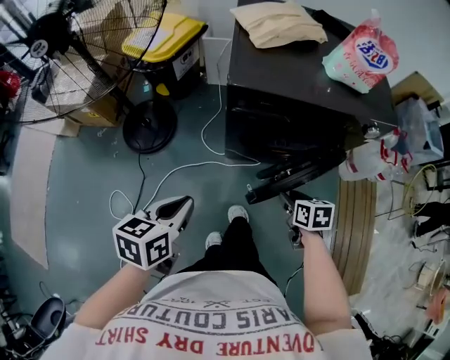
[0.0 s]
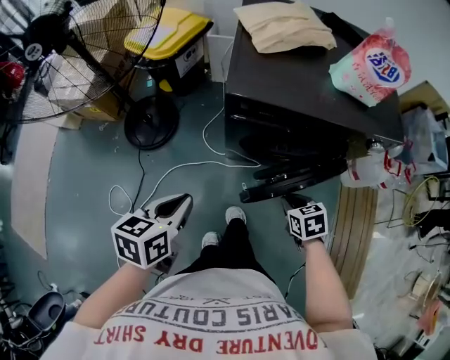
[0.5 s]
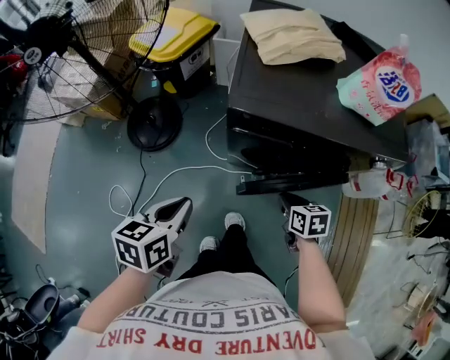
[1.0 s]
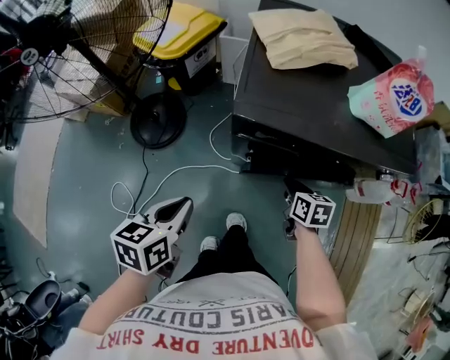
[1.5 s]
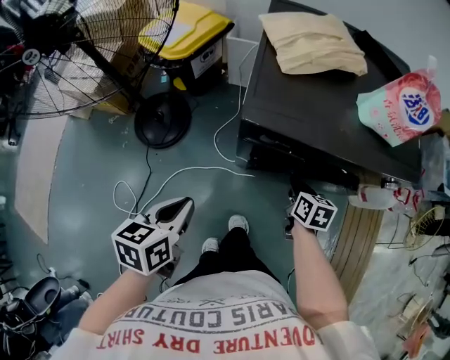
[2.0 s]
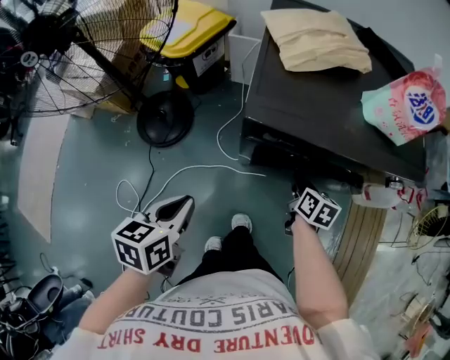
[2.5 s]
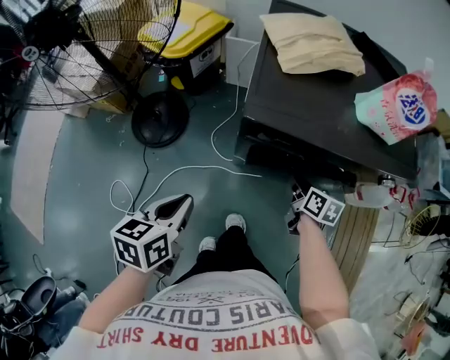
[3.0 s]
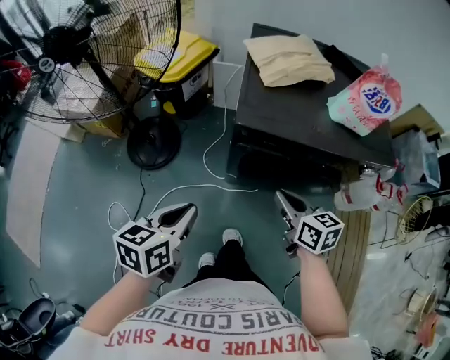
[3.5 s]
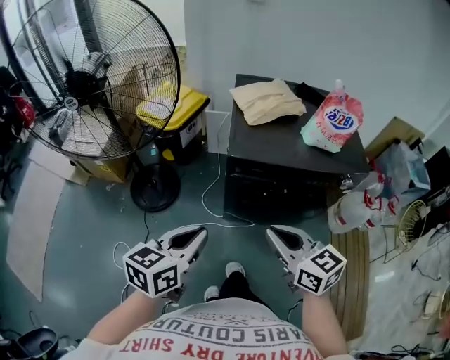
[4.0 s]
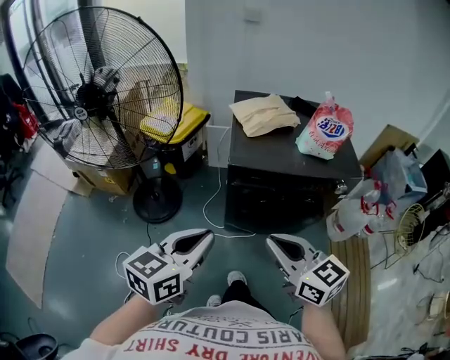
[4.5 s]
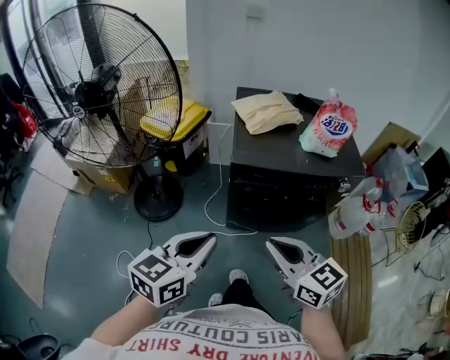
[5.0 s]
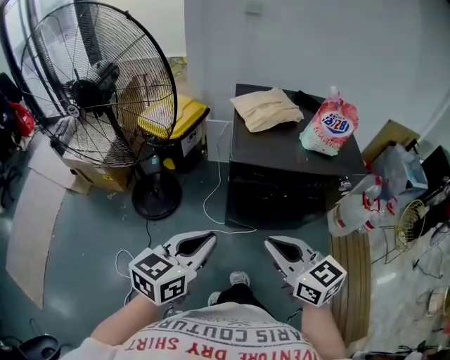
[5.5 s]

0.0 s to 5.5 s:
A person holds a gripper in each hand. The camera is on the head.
0.0 to 2.0 s: The left gripper shifts roughly 10 cm forward. The right gripper travels forward by approximately 15 cm, and closes.
2.0 to 3.5 s: The right gripper moves upward and backward, roughly 15 cm, and rotates about 20 degrees; the left gripper moves upward, about 5 cm.
3.5 to 5.5 s: The left gripper heads upward and backward, covering approximately 15 cm, and rotates some 20 degrees. The right gripper shifts about 20 cm upward and backward, and swivels about 20 degrees.

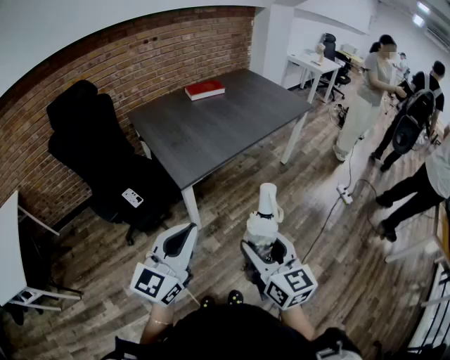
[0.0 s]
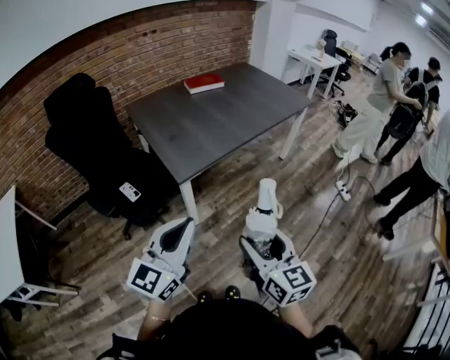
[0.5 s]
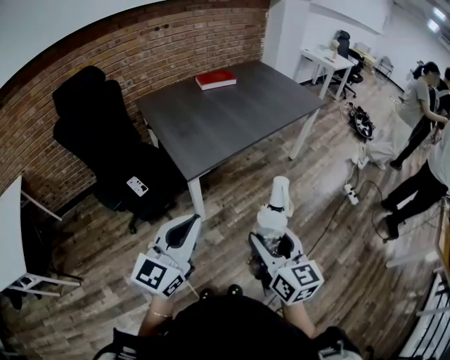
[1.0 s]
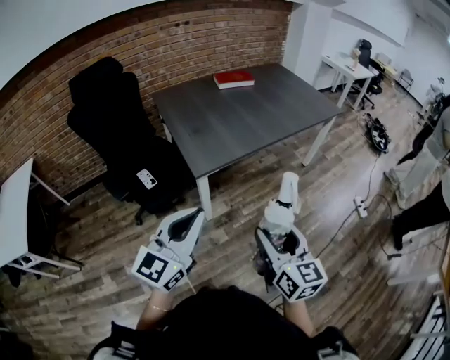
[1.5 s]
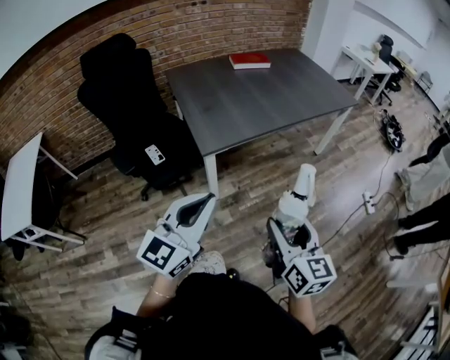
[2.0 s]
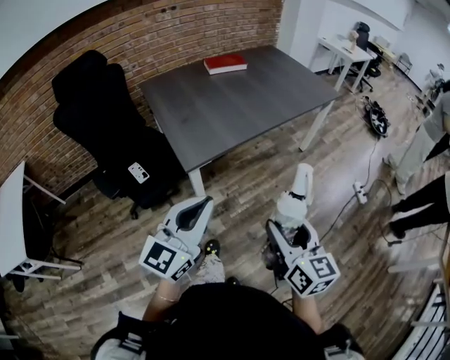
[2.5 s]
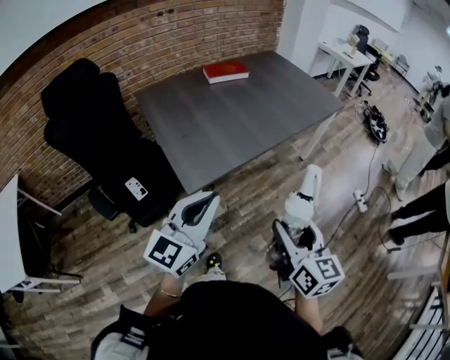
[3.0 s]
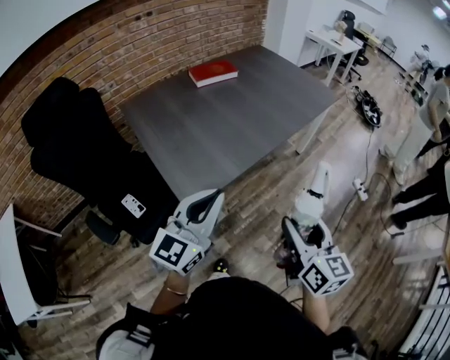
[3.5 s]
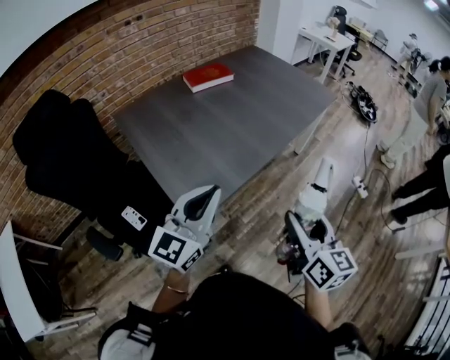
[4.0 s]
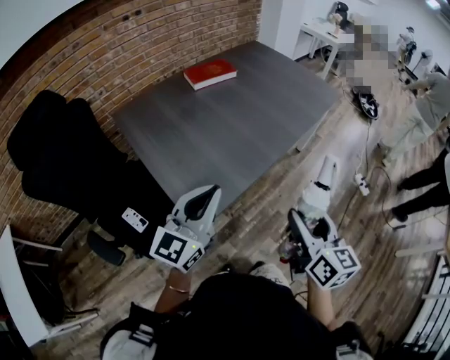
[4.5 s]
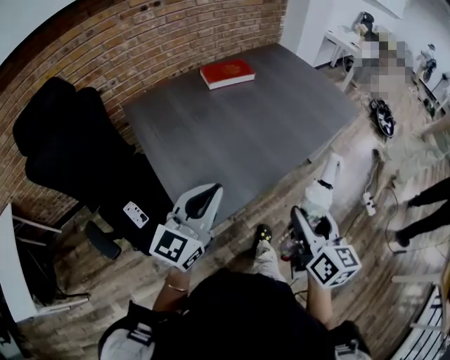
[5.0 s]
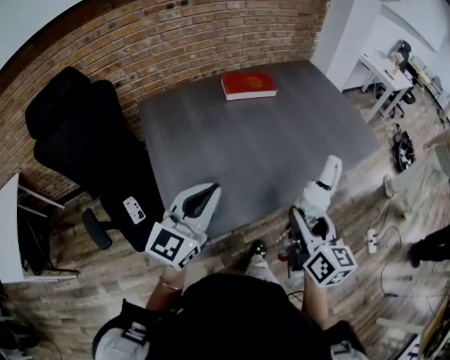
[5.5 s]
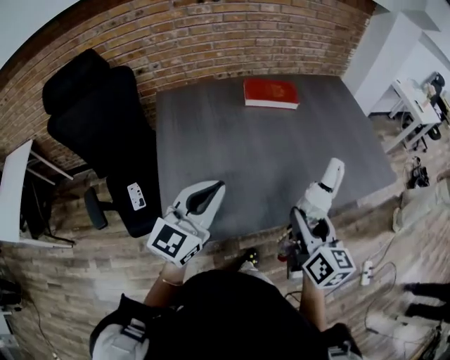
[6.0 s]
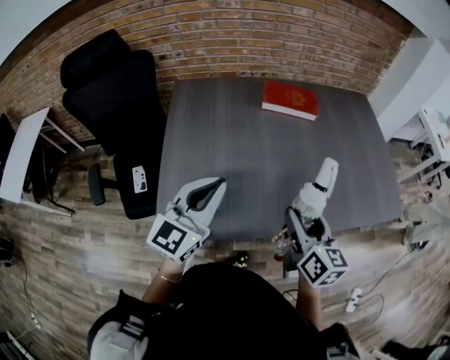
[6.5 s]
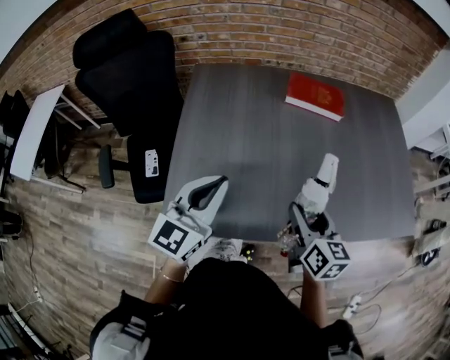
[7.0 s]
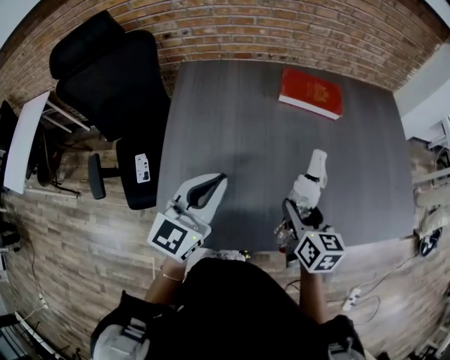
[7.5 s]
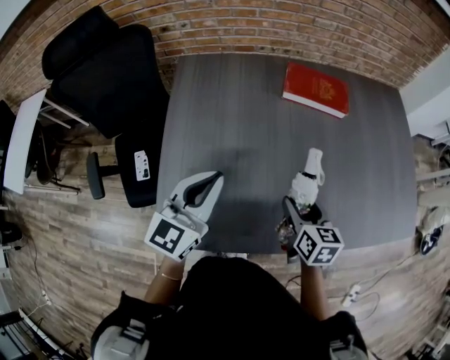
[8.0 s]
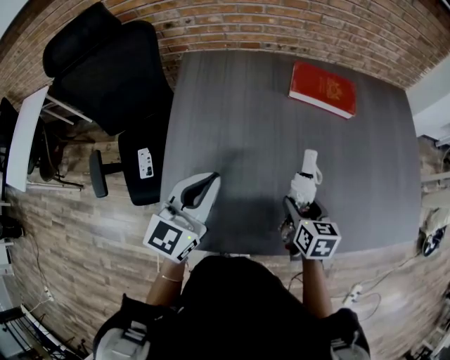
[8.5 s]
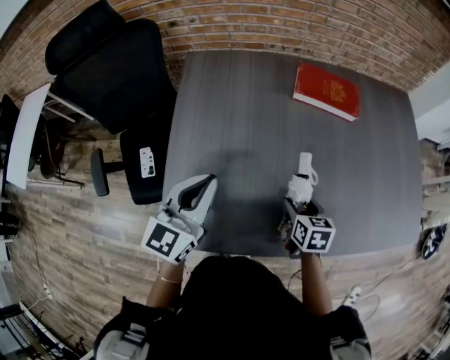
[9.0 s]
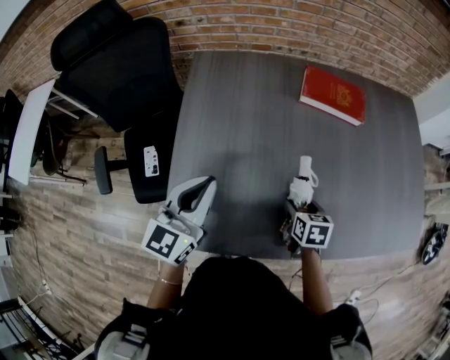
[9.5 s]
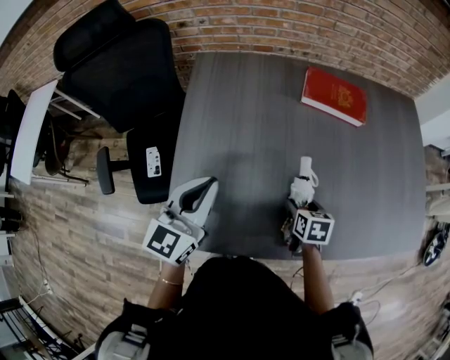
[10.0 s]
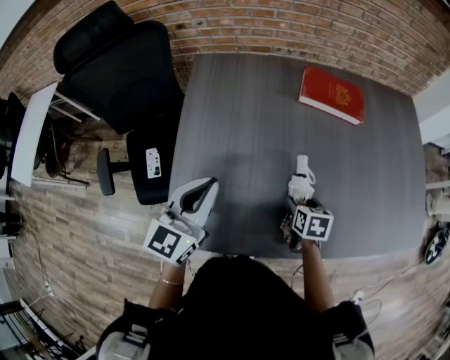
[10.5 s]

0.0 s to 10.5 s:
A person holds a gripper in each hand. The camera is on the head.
0.0 to 2.0 s: The right gripper goes about 10 cm to the right and forward.
2.0 to 4.0 s: The two grippers go about 30 cm forward.
4.0 to 6.5 s: The right gripper moves about 40 cm, and turns by some 40 degrees. Meanwhile the left gripper changes place by some 25 cm, and rotates about 40 degrees.
6.5 to 8.5 s: The left gripper is displaced forward, downward and to the left by some 15 cm. Meanwhile the right gripper moves downward and forward, approximately 25 cm, and rotates approximately 30 degrees.
8.5 to 10.5 s: The right gripper heads downward, covering approximately 5 cm.

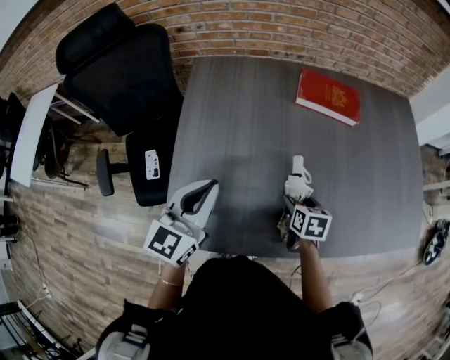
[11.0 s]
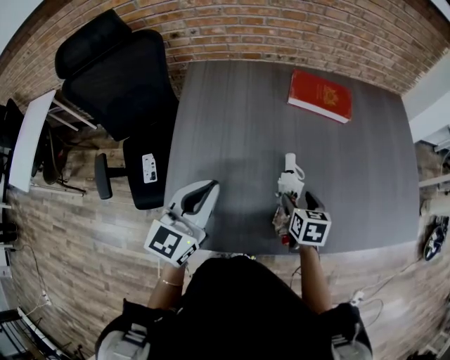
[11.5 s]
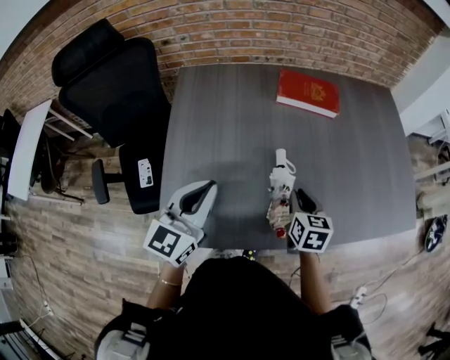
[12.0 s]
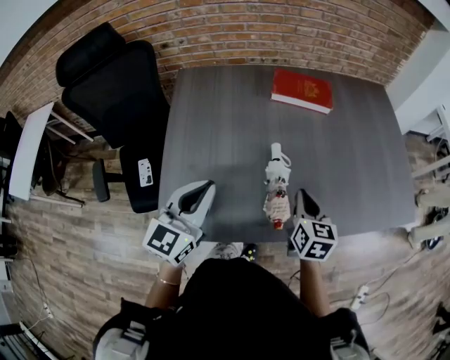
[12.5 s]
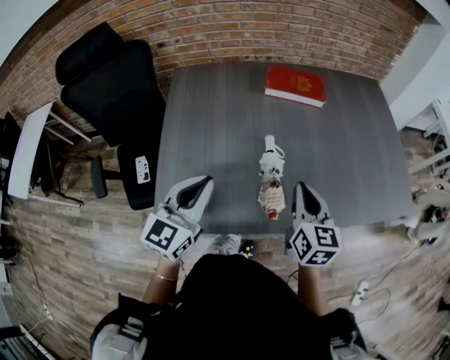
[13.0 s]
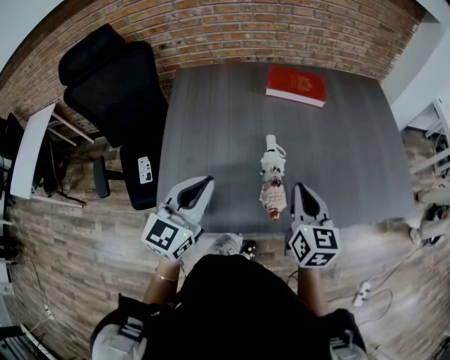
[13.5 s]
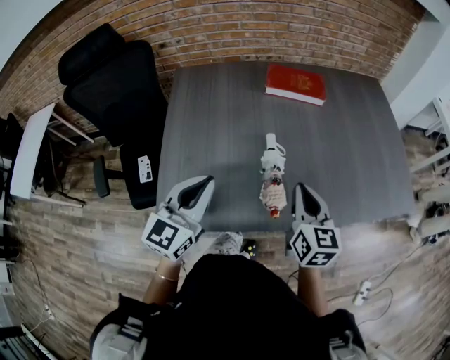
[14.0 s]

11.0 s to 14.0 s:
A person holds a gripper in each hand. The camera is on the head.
11.0 to 12.5 s: The right gripper is displaced upward, to the right and backward by roughly 15 cm, changes its angle by about 20 degrees, and closes up. Meanwhile the left gripper heads to the right and backward, covering some 10 cm.
12.5 to 14.0 s: The right gripper travels upward by roughly 5 cm.

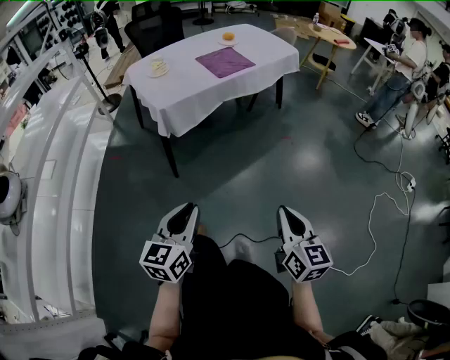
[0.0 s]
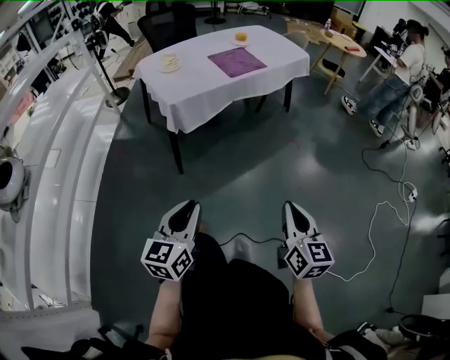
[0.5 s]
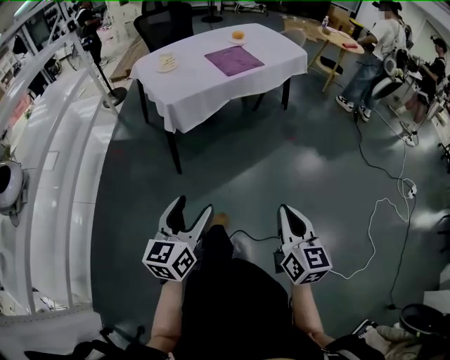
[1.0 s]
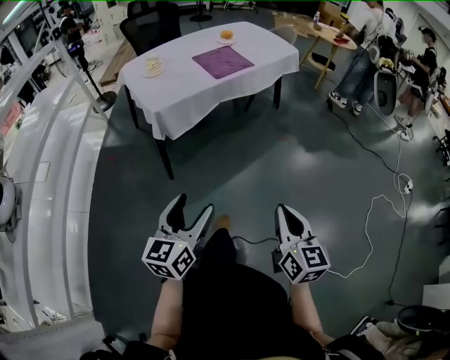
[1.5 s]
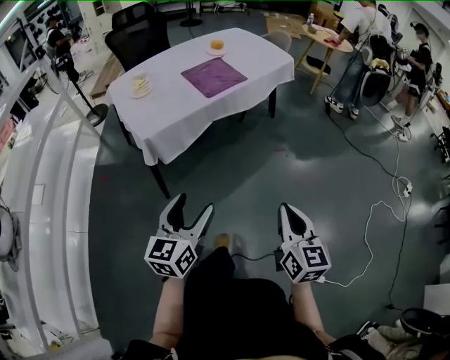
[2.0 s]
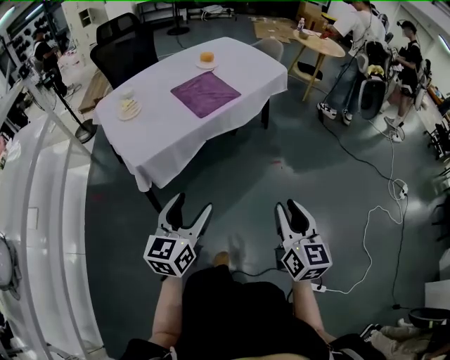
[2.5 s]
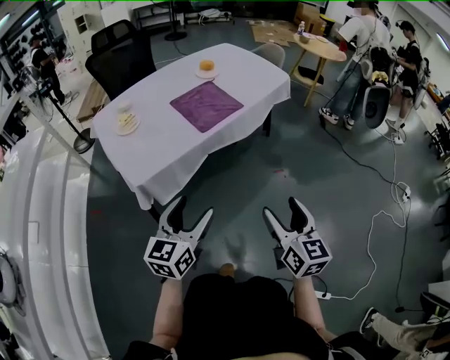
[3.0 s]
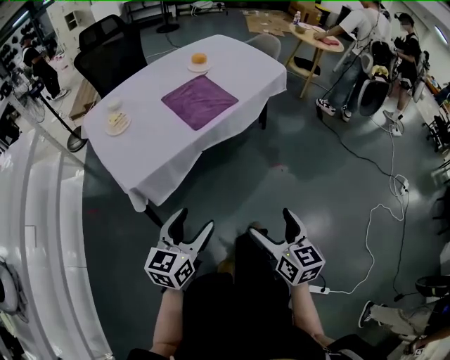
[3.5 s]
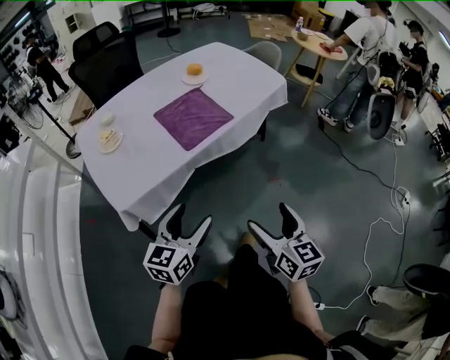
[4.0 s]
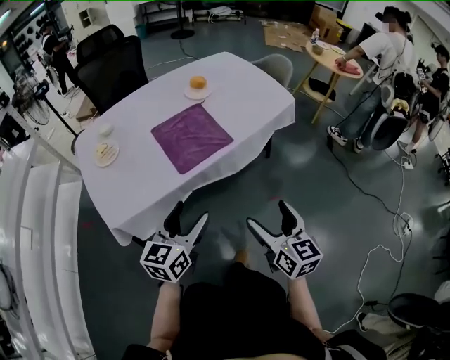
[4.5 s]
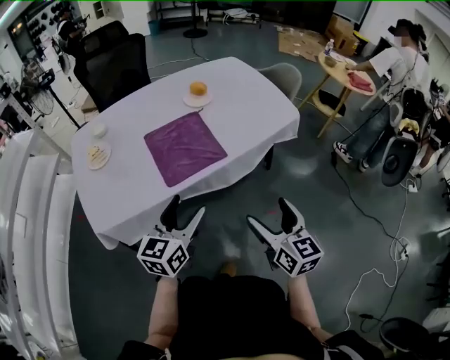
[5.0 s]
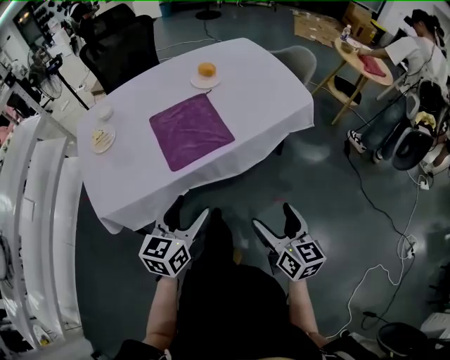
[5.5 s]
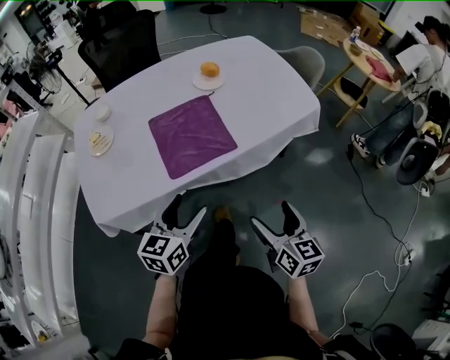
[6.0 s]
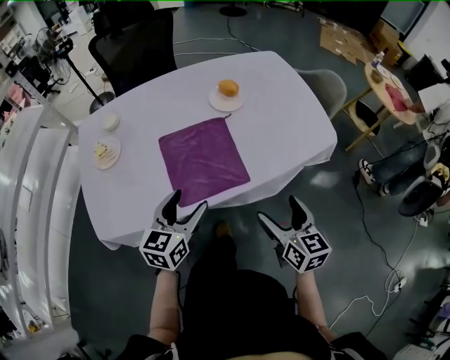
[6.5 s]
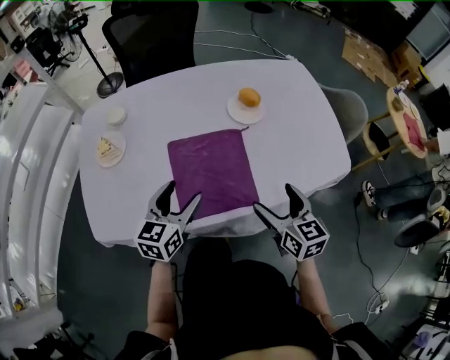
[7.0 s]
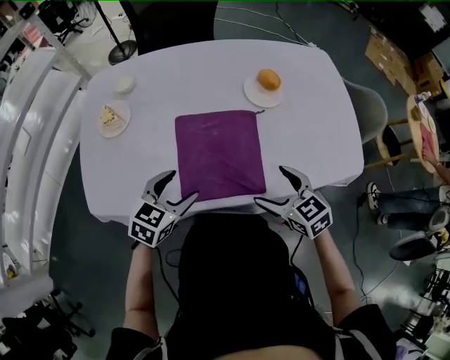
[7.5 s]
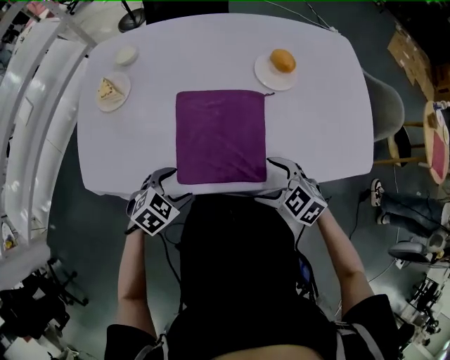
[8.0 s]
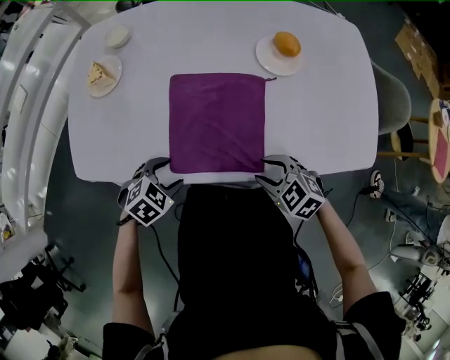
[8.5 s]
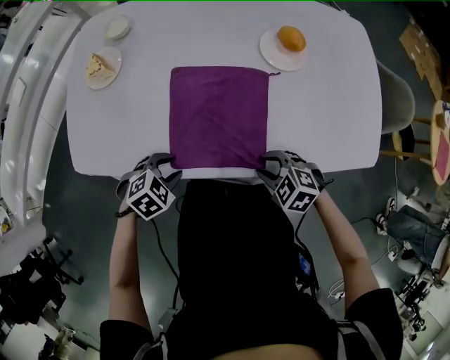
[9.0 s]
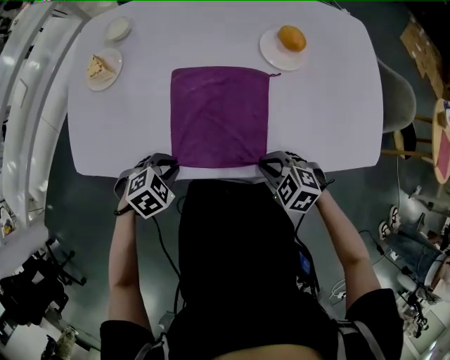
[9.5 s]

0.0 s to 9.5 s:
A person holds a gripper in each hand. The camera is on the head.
0.0 to 2.0 s: The two grippers go approximately 20 cm forward. The left gripper opens up.
2.0 to 4.0 s: The two grippers go about 30 cm forward. The right gripper opens its fingers.
4.0 to 5.5 s: Both grippers move forward and to the right, roughly 25 cm.
5.5 to 7.5 s: The left gripper changes place by about 25 cm, and changes its angle by about 20 degrees; the right gripper ends up some 35 cm from where it was, and turns by about 60 degrees.
7.5 to 9.5 s: The grippers both shift downward by approximately 10 cm. The right gripper rotates about 40 degrees, and closes its fingers; the left gripper tips its fingers downward by about 30 degrees, and closes.
